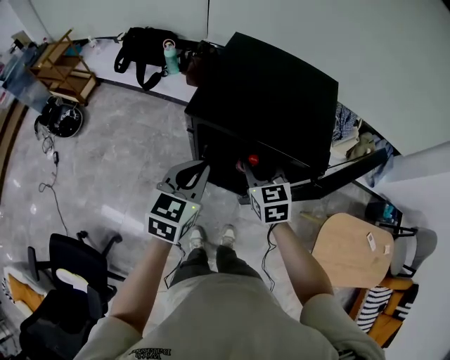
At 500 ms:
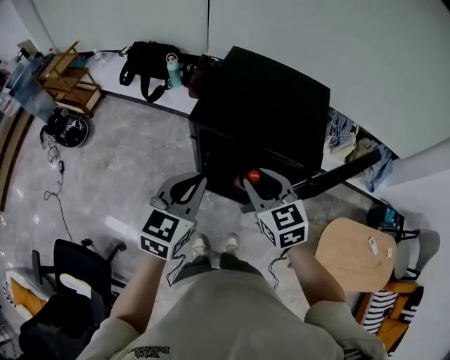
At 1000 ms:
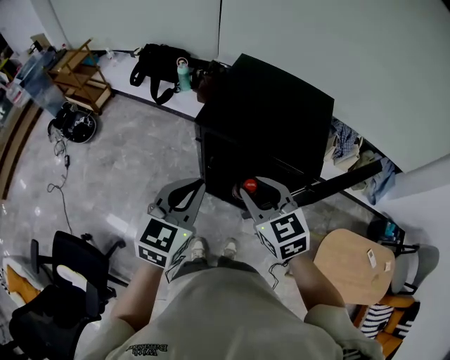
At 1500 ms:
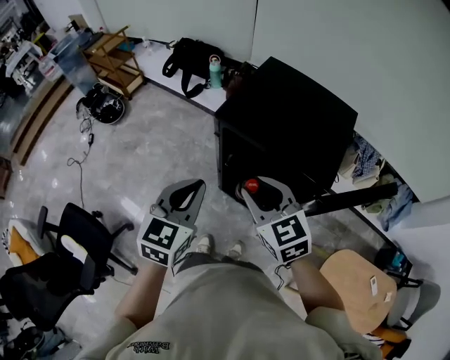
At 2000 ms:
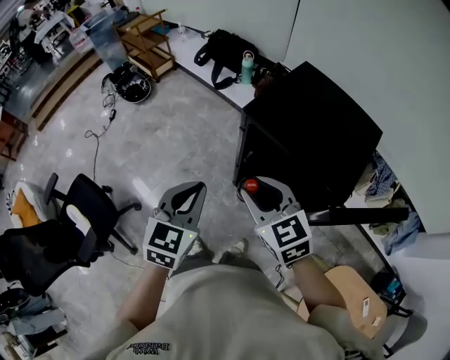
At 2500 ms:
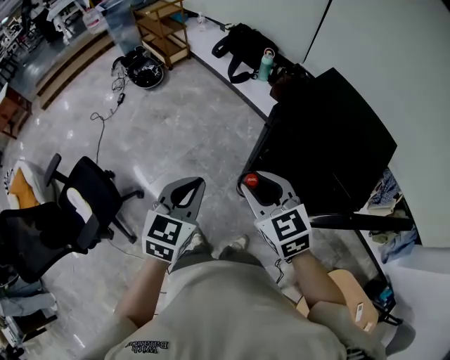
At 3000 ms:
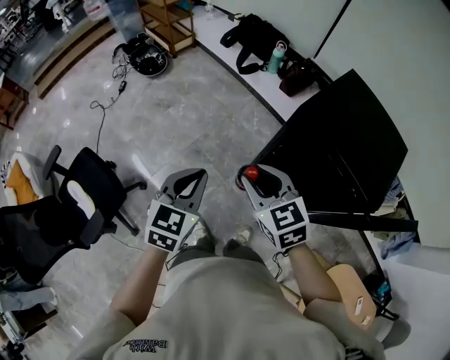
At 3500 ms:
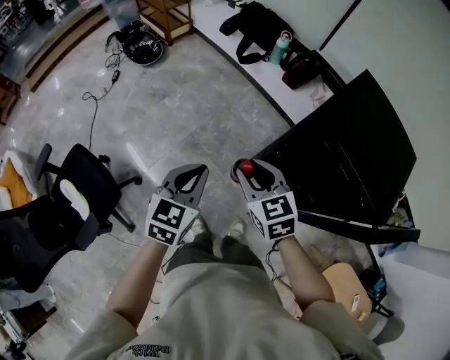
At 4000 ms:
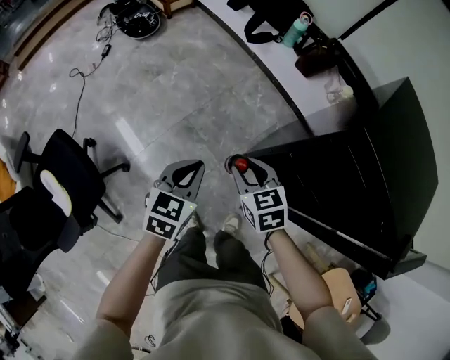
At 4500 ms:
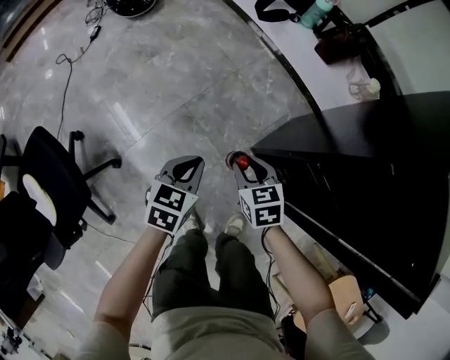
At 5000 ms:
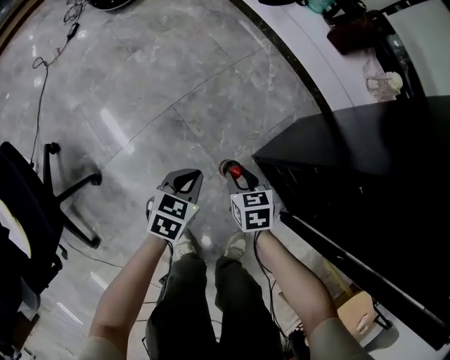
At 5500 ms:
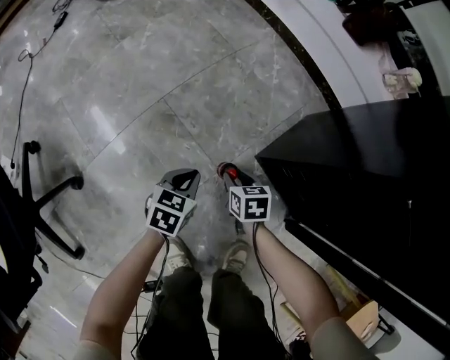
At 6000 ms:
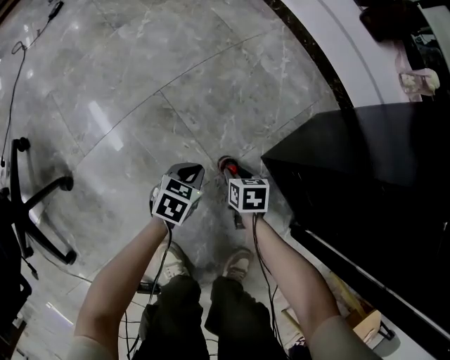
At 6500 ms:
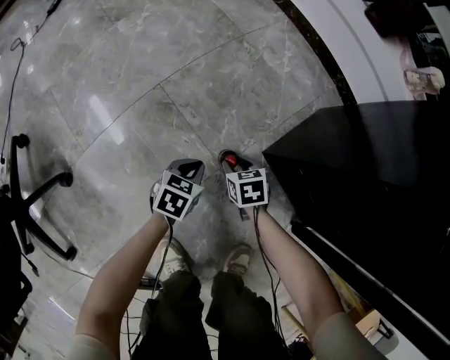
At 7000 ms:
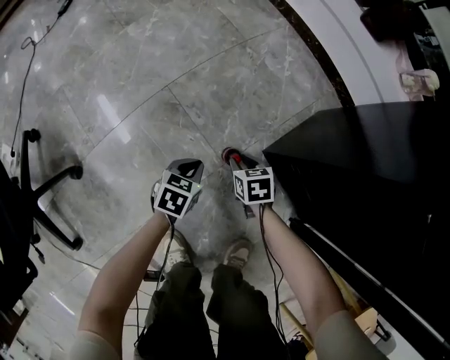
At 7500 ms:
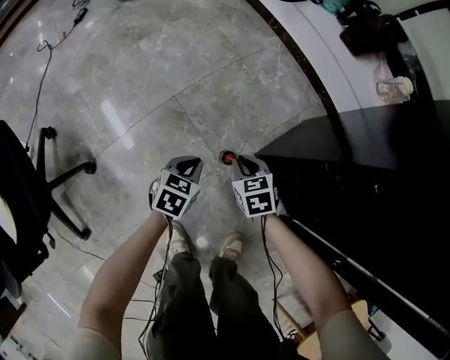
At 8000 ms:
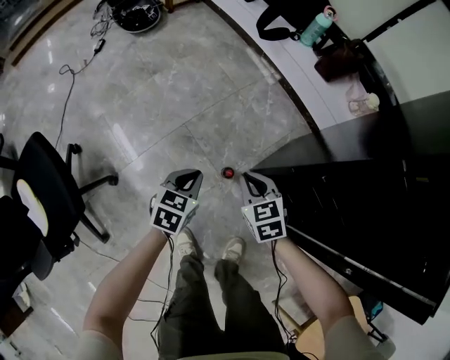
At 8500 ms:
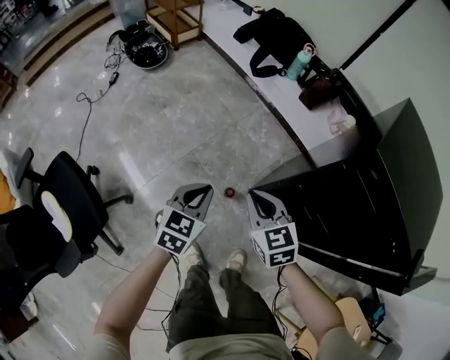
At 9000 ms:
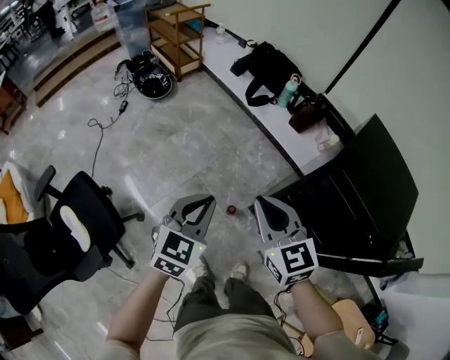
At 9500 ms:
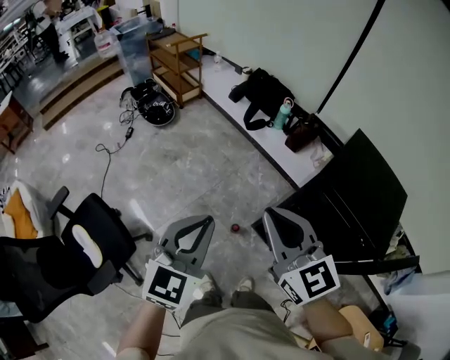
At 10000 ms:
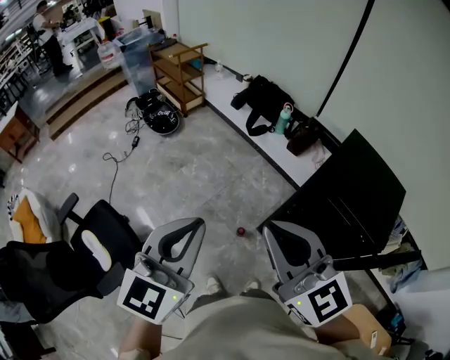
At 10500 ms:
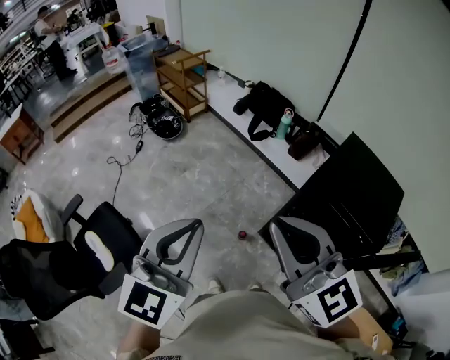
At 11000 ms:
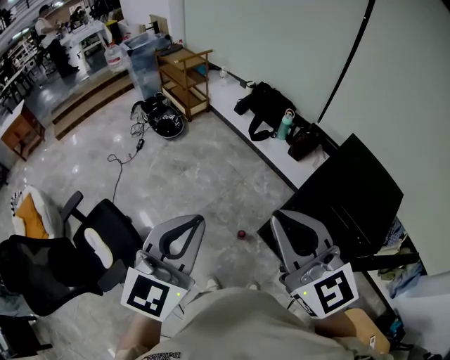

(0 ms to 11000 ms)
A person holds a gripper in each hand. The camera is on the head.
0 ms - 2000 ms: The left gripper moves approximately 15 cm, and changes its angle by some 30 degrees. Meanwhile the right gripper ends up some 20 cm from where it was, and changes its angle by roughly 40 degrees.
2000 ms - 3500 ms: The grippers both shift to the left, downward and forward by roughly 20 cm.
3500 ms - 5500 ms: The two grippers go roughly 70 cm downward. The left gripper changes its angle by roughly 30 degrees. The right gripper changes its angle by about 40 degrees.
5500 ms - 7500 ms: The right gripper moves upward, about 10 cm, changes its angle by about 20 degrees, and closes, while the left gripper shifts roughly 5 cm upward.
7500 ms - 9000 ms: The two grippers go about 70 cm upward. The left gripper changes its angle by some 30 degrees. Meanwhile the right gripper tilts its fingers some 40 degrees upward.
9000 ms - 11000 ms: The two grippers go roughly 25 cm upward. The right gripper turns by roughly 20 degrees.

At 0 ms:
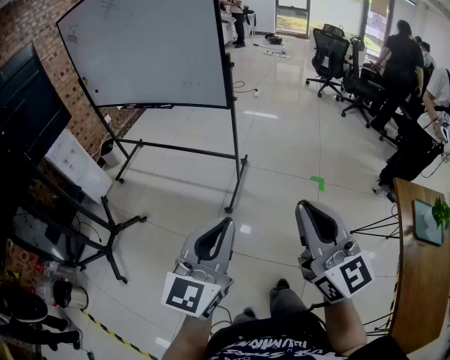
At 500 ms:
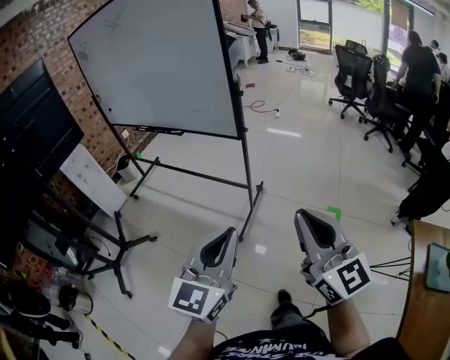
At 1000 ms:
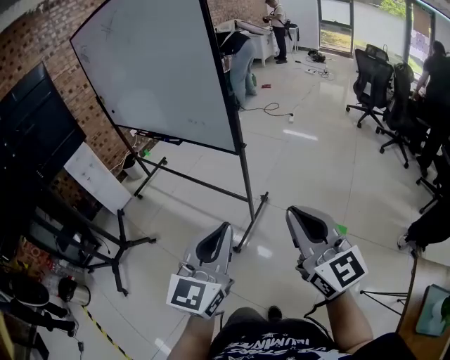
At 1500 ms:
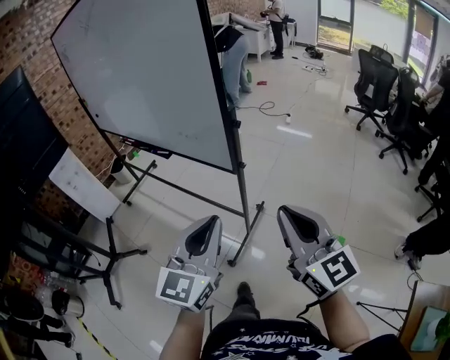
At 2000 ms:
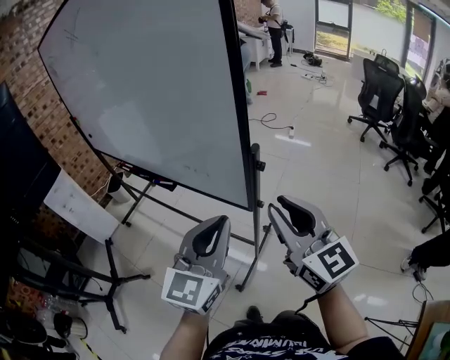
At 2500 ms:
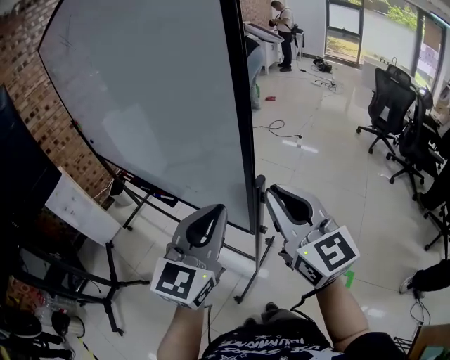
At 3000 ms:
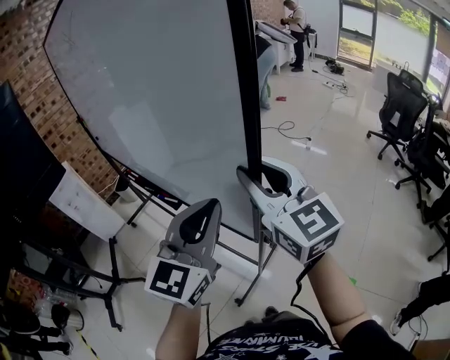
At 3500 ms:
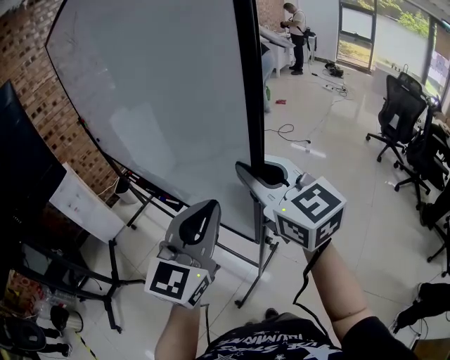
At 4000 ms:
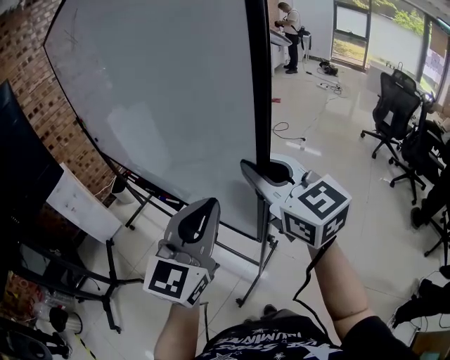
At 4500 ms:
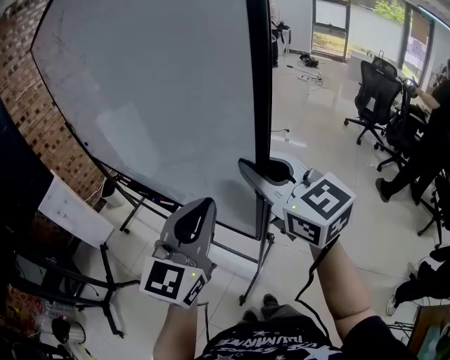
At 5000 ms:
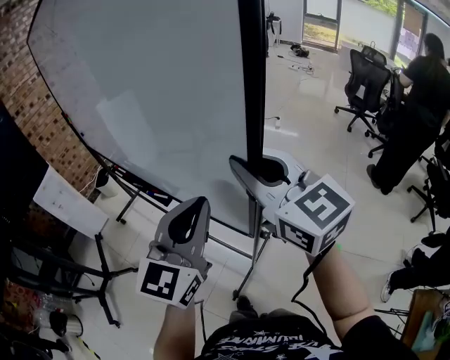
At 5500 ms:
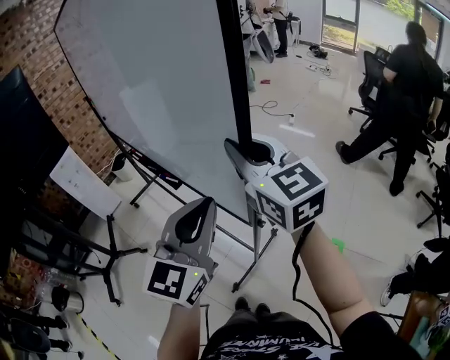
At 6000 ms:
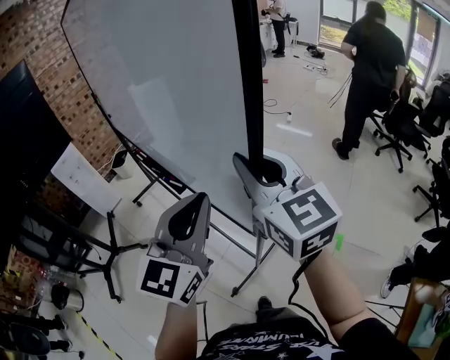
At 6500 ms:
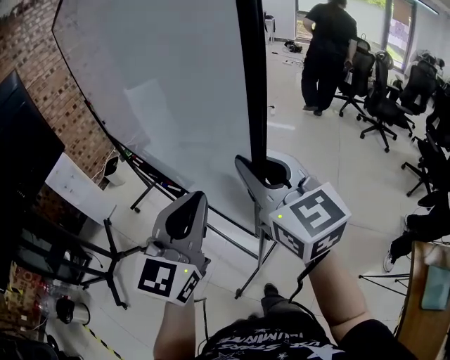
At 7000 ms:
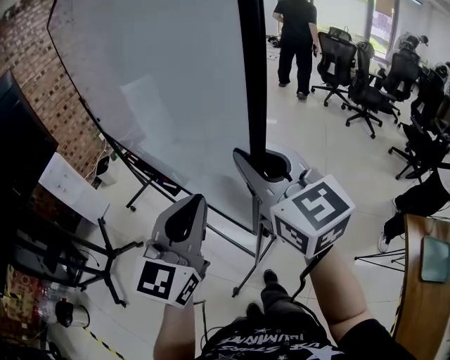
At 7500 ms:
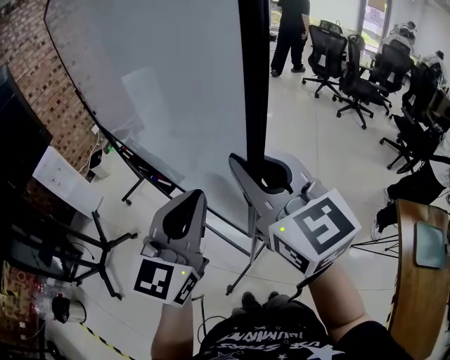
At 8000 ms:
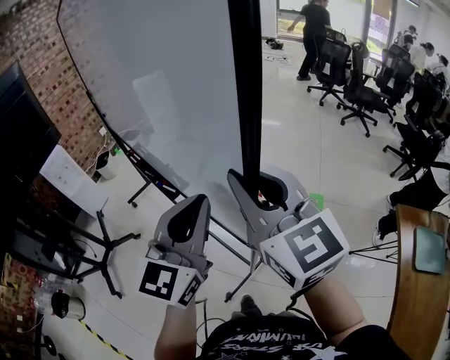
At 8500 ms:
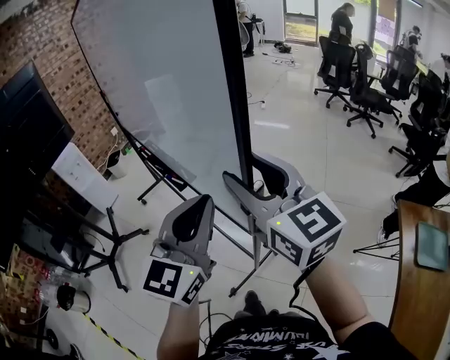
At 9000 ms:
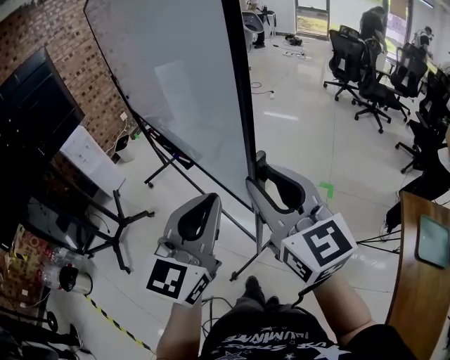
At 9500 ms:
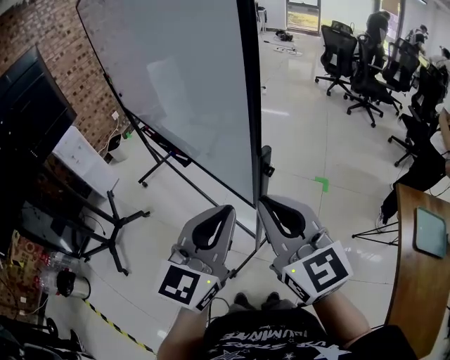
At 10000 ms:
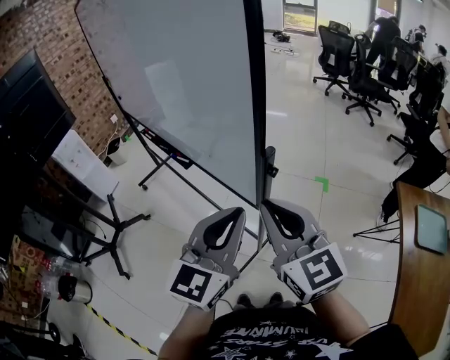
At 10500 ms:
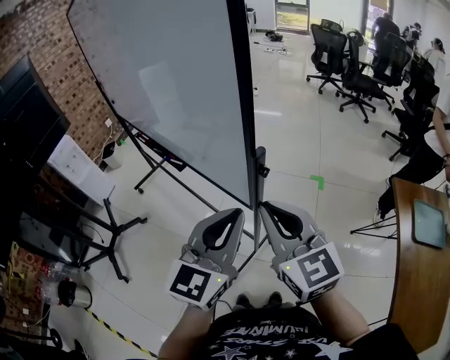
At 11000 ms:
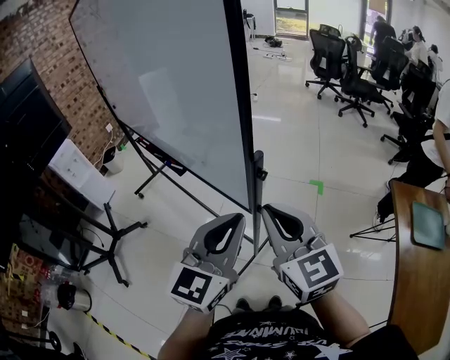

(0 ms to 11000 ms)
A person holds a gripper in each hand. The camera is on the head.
0 ms - 2000 ms: Both grippers are carried forward, about 50 cm.
2000 ms - 3500 ms: The left gripper is displaced forward and upward by about 10 cm. The right gripper travels forward and upward by roughly 15 cm.
3500 ms - 5500 ms: Both grippers move backward, about 20 cm.
5500 ms - 7500 ms: The two grippers go about 25 cm backward.
7500 ms - 9000 ms: Both grippers travel together backward, roughly 15 cm. The right gripper opens its fingers.
9000 ms - 11000 ms: The two grippers go approximately 5 cm downward. The right gripper closes up.

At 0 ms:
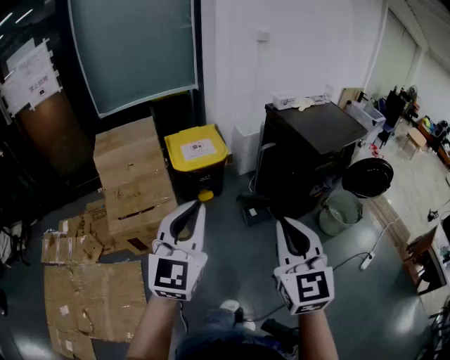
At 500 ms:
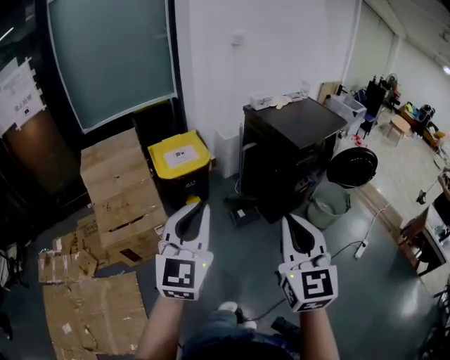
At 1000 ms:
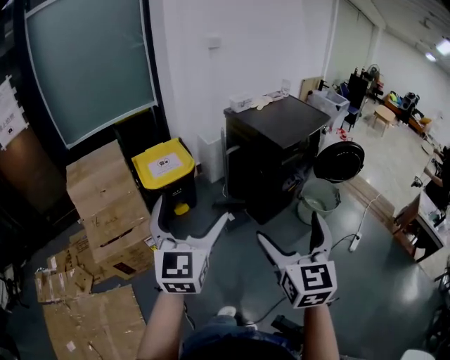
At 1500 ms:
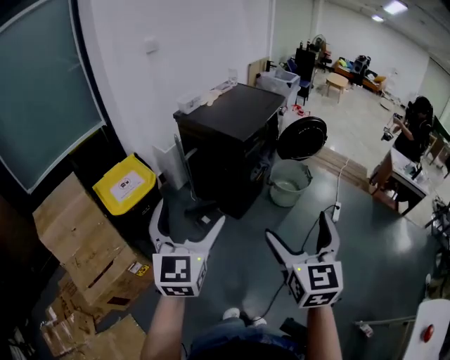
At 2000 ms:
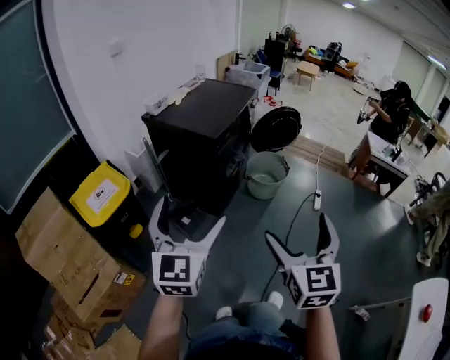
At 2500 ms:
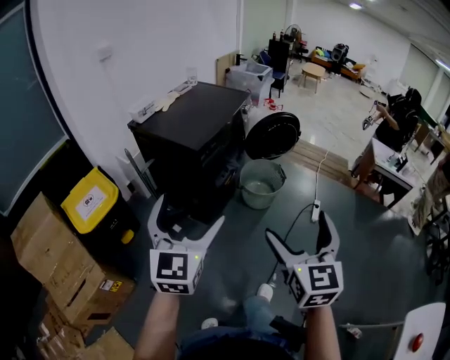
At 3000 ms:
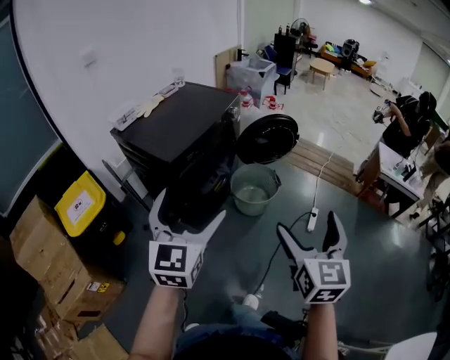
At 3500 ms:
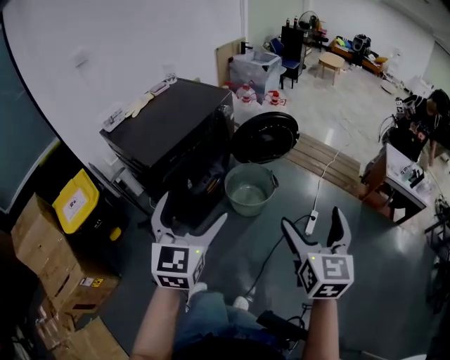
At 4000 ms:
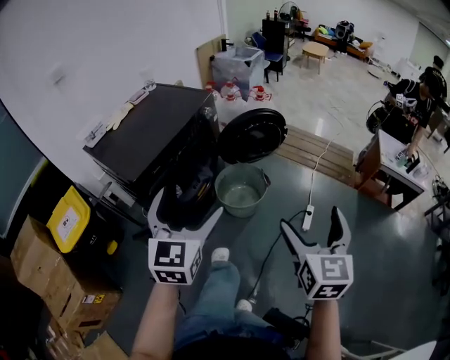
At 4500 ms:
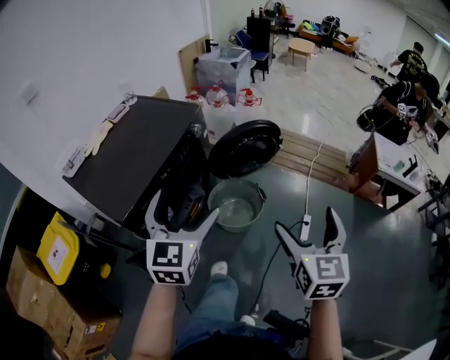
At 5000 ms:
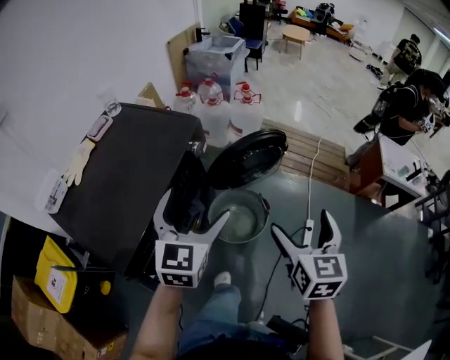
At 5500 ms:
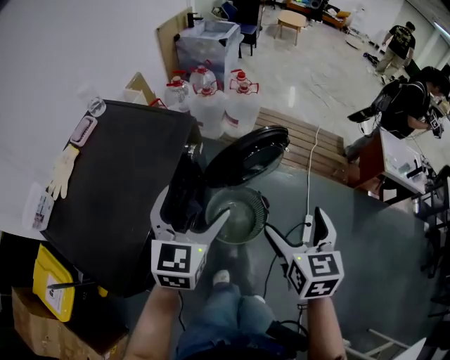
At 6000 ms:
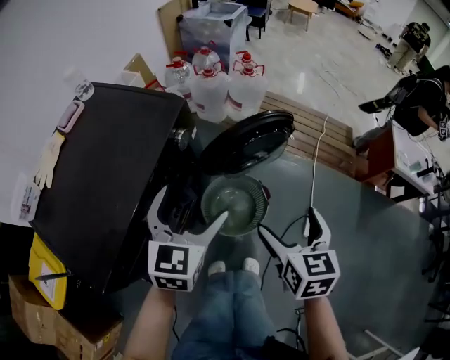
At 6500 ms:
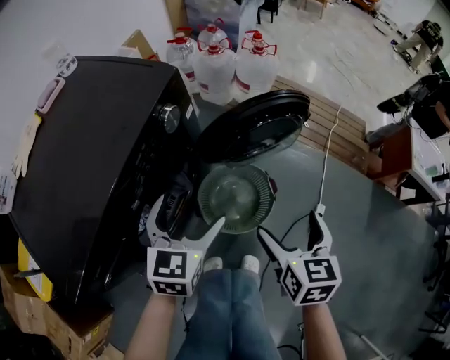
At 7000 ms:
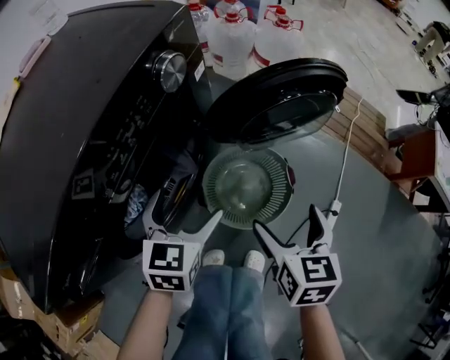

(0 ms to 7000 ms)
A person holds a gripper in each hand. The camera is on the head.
0 ms - 2000 ms: The right gripper ends up approximately 25 cm from where it was, turns by roughly 40 degrees, and opens, while the left gripper shifts by approximately 25 cm, swivels roughly 30 degrees, and opens its fingers.
2000 ms - 3500 ms: Both grippers are carried to the right and forward, approximately 40 cm.
3500 ms - 5000 ms: Both grippers travel together forward, approximately 35 cm.
5000 ms - 7000 ms: The grippers both shift downward by roughly 35 cm. The right gripper turns by about 20 degrees, while the left gripper turns by about 30 degrees.
